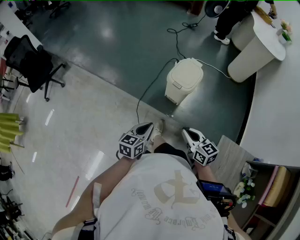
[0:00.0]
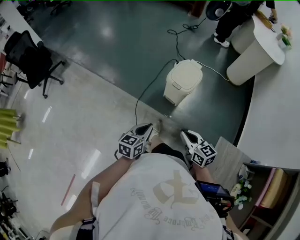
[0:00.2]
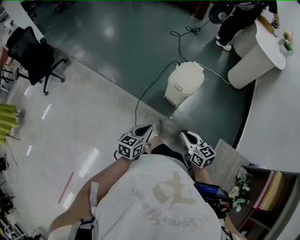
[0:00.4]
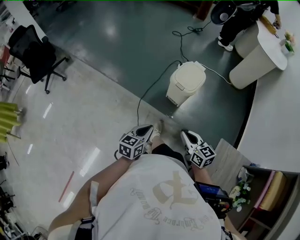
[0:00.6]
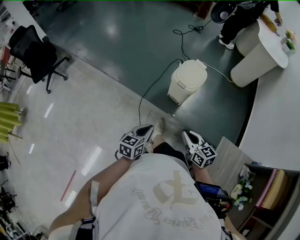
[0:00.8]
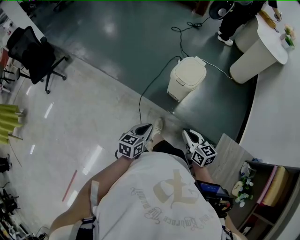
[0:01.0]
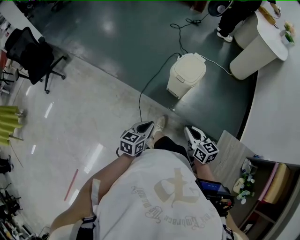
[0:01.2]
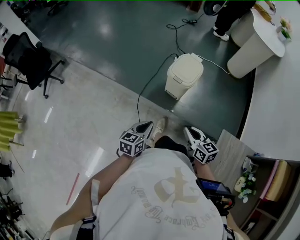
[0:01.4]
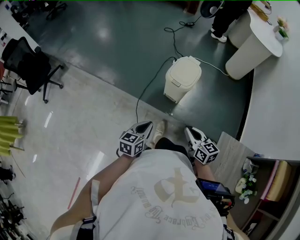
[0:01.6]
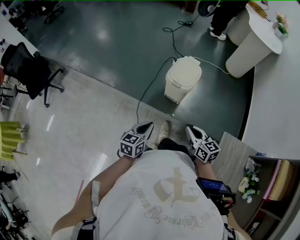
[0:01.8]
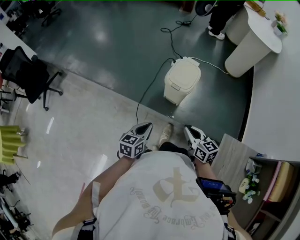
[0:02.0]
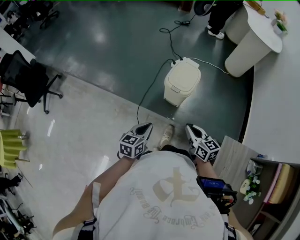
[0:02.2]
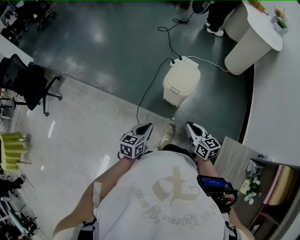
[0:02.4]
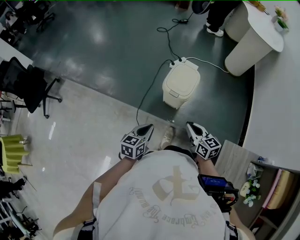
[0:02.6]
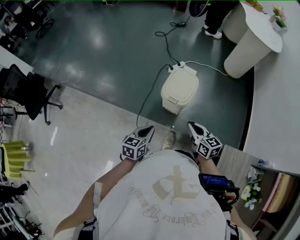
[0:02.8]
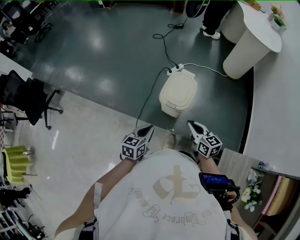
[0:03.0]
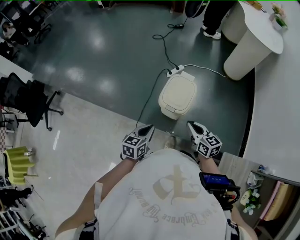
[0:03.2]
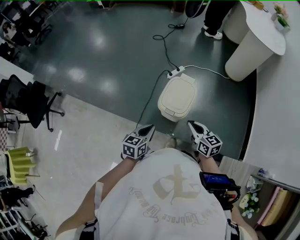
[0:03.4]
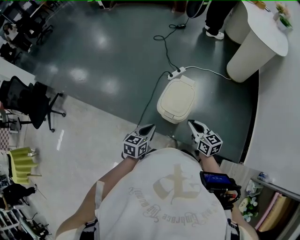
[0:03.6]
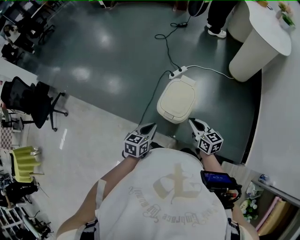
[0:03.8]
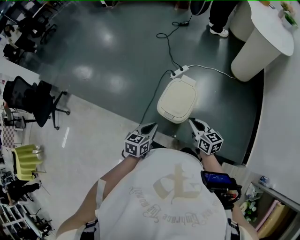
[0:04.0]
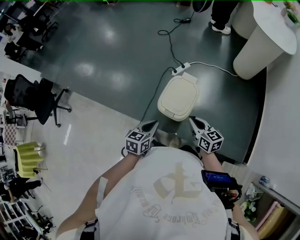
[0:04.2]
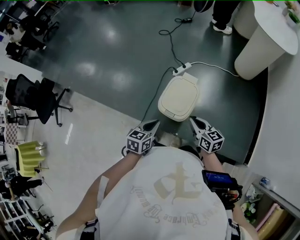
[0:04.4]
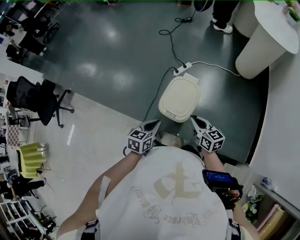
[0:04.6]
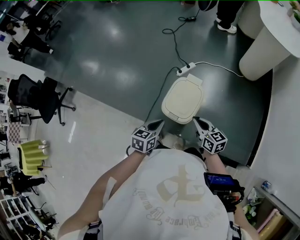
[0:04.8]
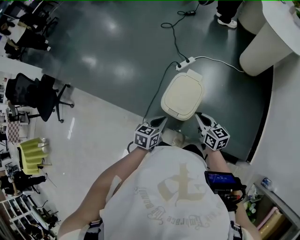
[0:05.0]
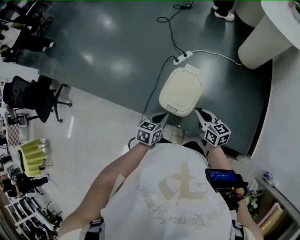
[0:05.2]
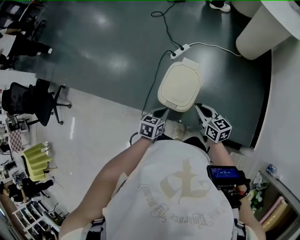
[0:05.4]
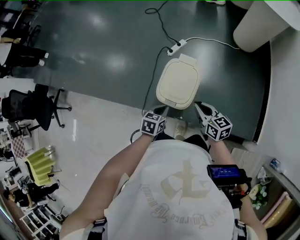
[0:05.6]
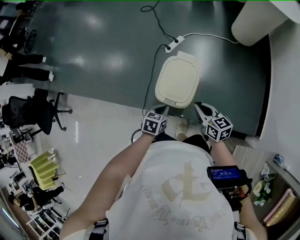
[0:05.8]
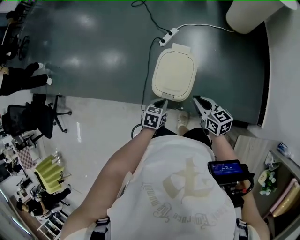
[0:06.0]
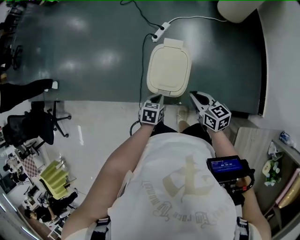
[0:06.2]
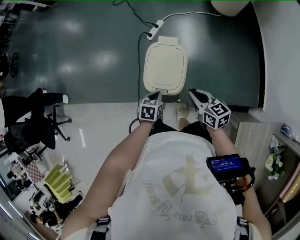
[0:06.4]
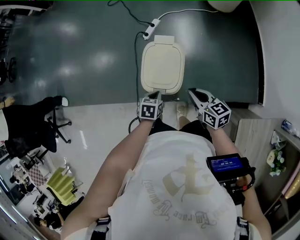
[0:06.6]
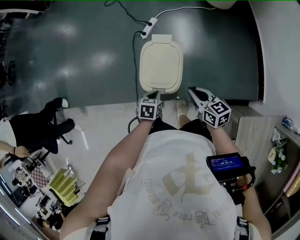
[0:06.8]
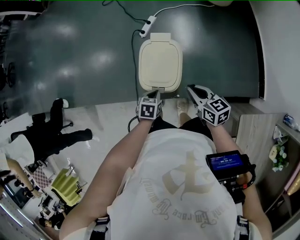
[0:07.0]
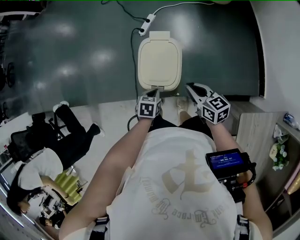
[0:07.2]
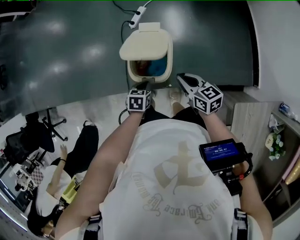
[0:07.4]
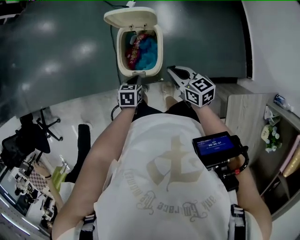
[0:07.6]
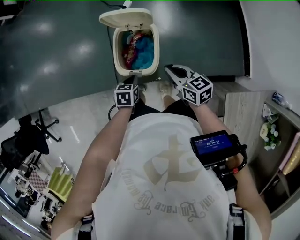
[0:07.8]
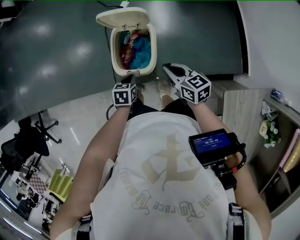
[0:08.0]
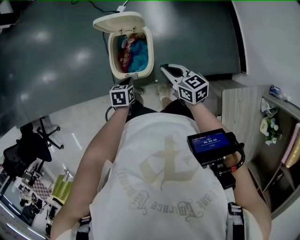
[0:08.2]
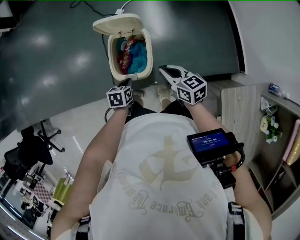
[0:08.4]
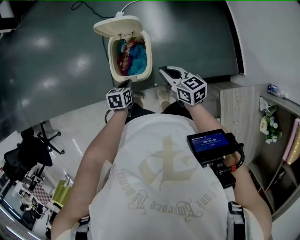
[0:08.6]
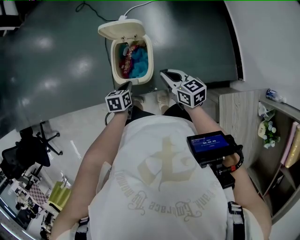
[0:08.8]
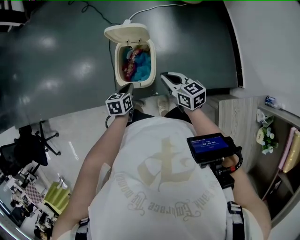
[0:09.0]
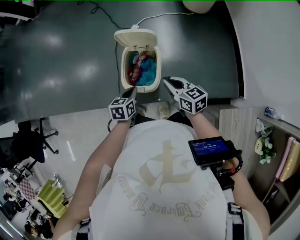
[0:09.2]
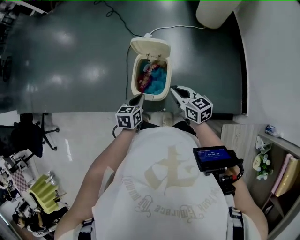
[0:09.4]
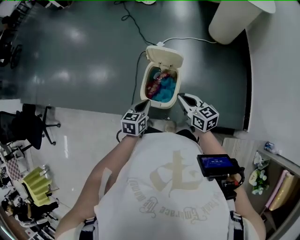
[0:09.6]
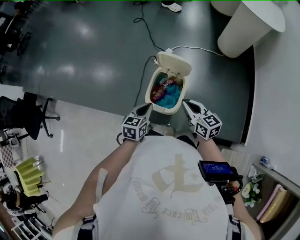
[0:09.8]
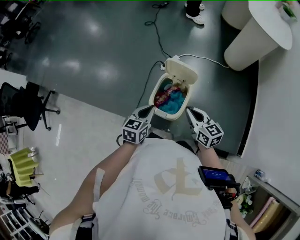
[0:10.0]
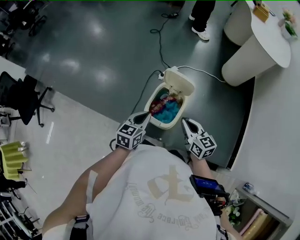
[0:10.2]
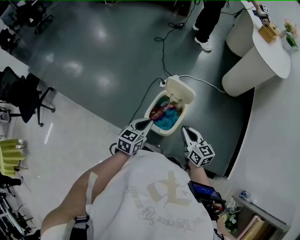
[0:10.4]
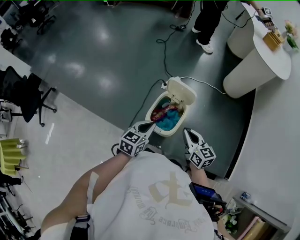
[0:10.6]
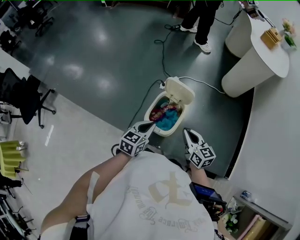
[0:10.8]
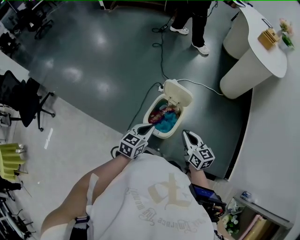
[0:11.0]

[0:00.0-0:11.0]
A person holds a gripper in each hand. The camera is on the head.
0:00.0 to 0:01.6: The grippers move only a little.
0:01.6 to 0:03.2: The grippers both shift forward by approximately 25 cm.
0:03.2 to 0:04.8: Both grippers move forward and to the right, roughly 10 cm.
0:04.8 to 0:06.2: The left gripper travels downward by approximately 15 cm, and turns by roughly 30 degrees. Meanwhile the right gripper shifts about 5 cm downward.
0:06.2 to 0:07.8: The grippers make only small movements.
0:07.8 to 0:09.4: The left gripper travels upward by roughly 10 cm. The right gripper travels upward by some 5 cm.
0:09.4 to 0:11.0: The left gripper heads upward, covering roughly 10 cm. Meanwhile the right gripper heads upward, covering about 5 cm.

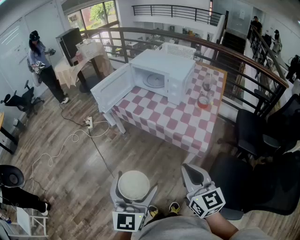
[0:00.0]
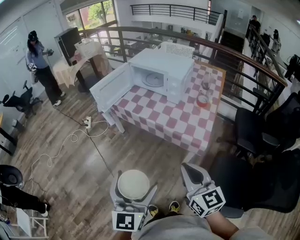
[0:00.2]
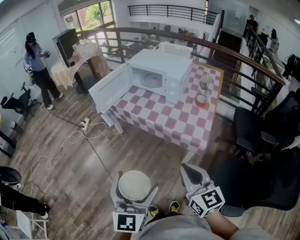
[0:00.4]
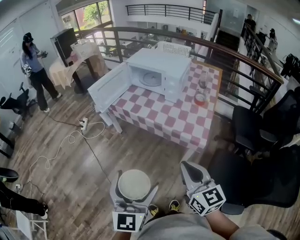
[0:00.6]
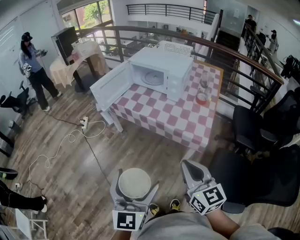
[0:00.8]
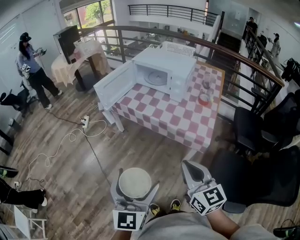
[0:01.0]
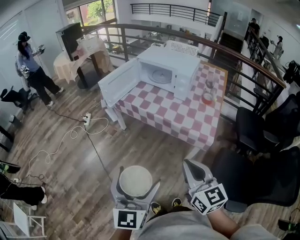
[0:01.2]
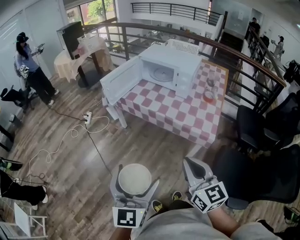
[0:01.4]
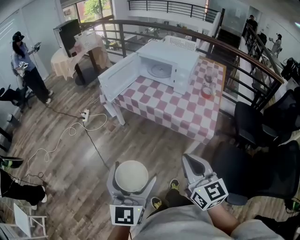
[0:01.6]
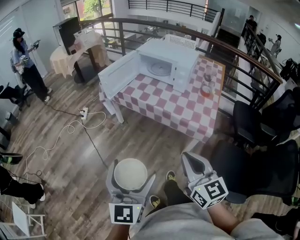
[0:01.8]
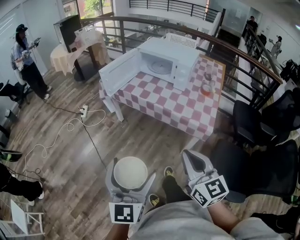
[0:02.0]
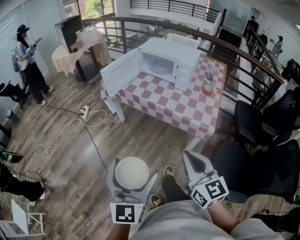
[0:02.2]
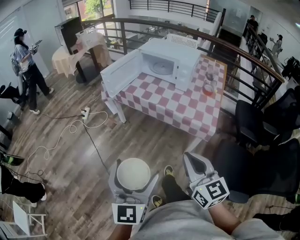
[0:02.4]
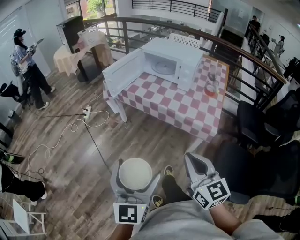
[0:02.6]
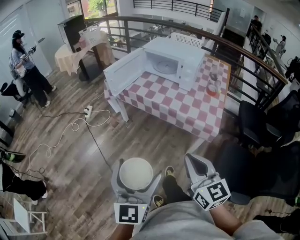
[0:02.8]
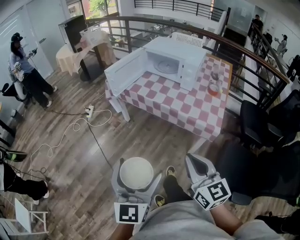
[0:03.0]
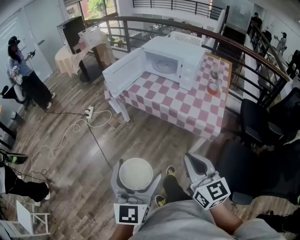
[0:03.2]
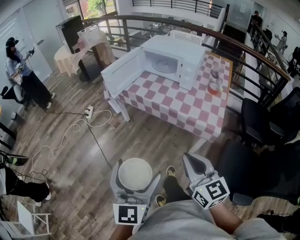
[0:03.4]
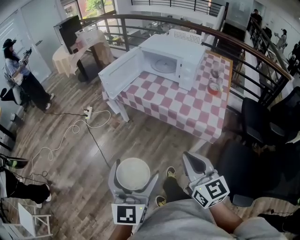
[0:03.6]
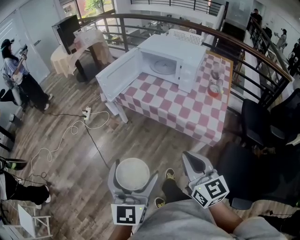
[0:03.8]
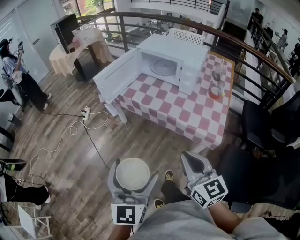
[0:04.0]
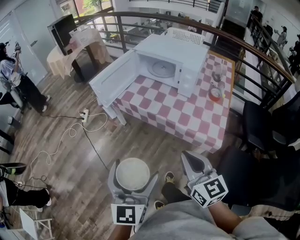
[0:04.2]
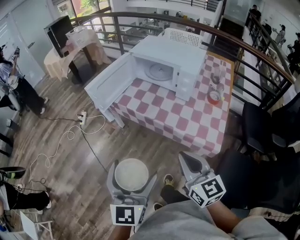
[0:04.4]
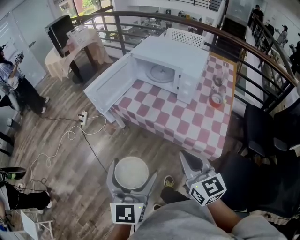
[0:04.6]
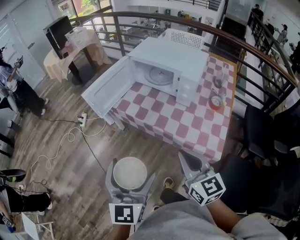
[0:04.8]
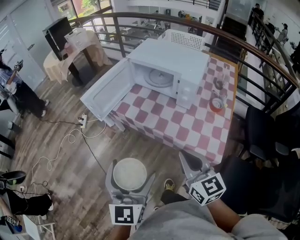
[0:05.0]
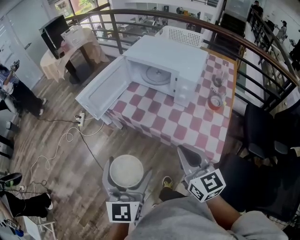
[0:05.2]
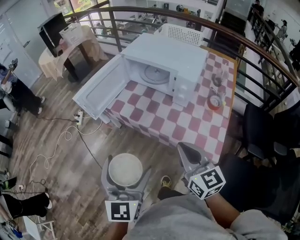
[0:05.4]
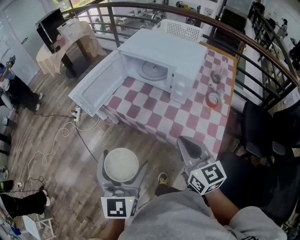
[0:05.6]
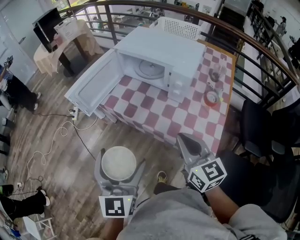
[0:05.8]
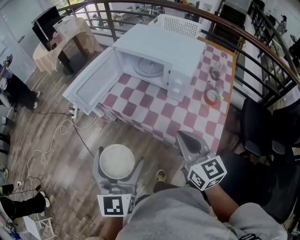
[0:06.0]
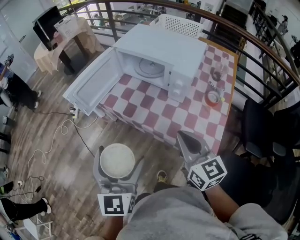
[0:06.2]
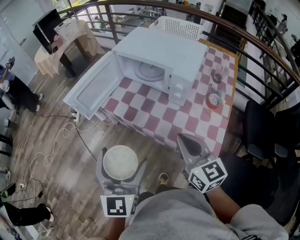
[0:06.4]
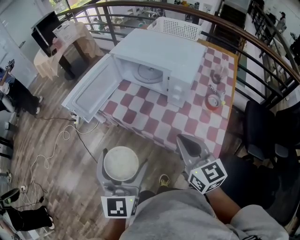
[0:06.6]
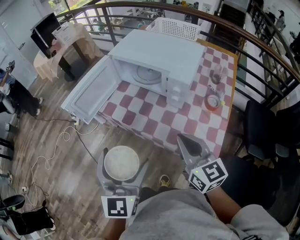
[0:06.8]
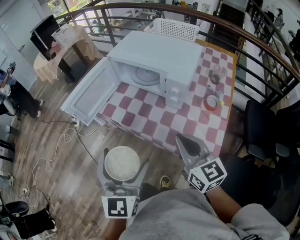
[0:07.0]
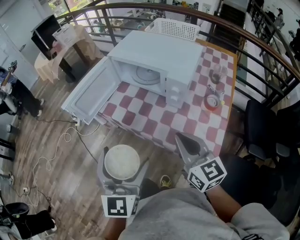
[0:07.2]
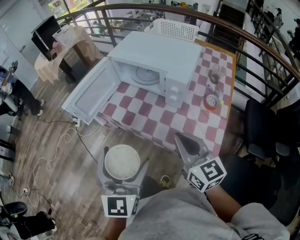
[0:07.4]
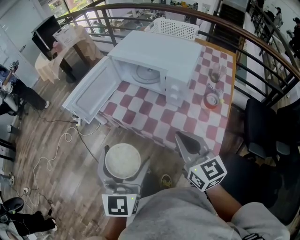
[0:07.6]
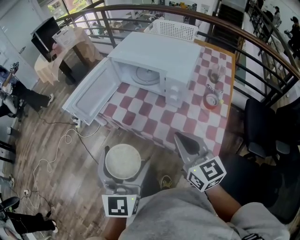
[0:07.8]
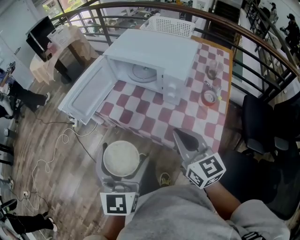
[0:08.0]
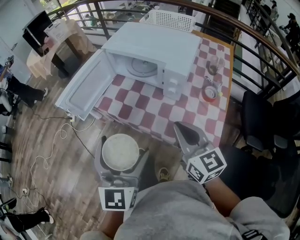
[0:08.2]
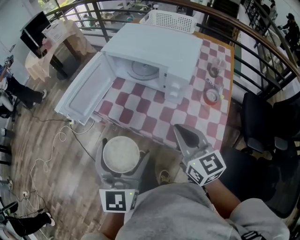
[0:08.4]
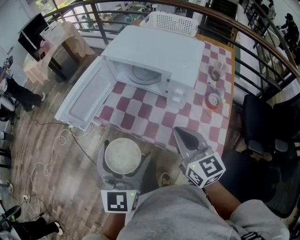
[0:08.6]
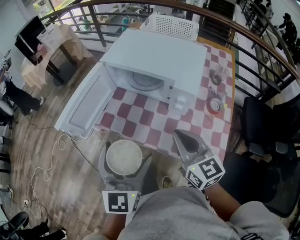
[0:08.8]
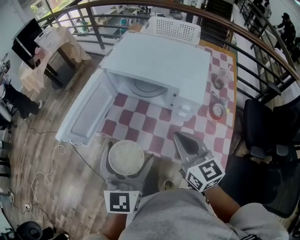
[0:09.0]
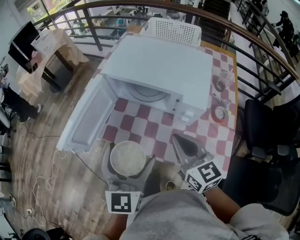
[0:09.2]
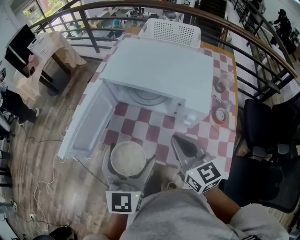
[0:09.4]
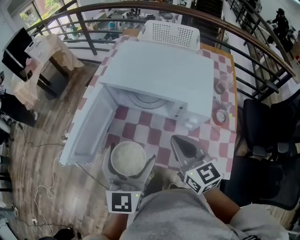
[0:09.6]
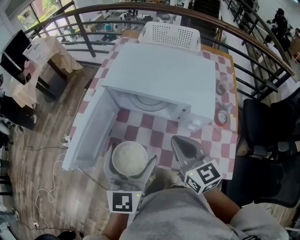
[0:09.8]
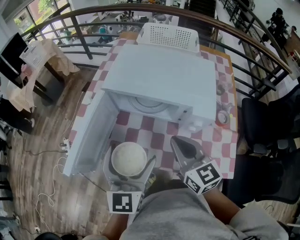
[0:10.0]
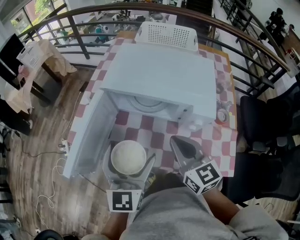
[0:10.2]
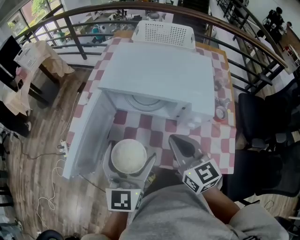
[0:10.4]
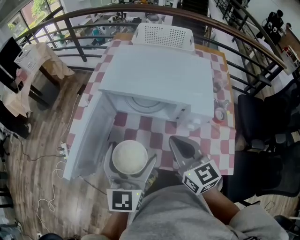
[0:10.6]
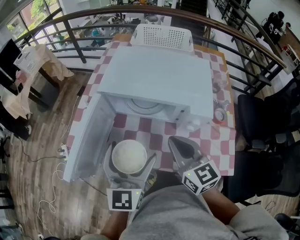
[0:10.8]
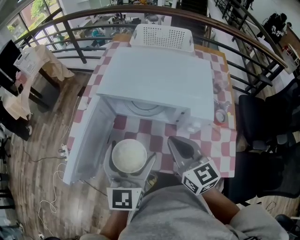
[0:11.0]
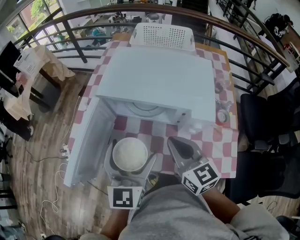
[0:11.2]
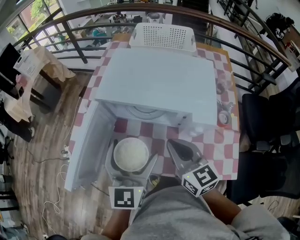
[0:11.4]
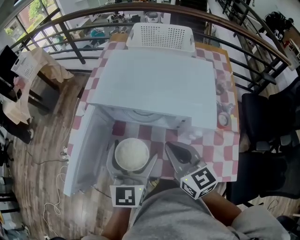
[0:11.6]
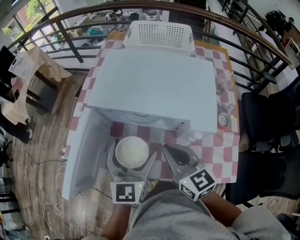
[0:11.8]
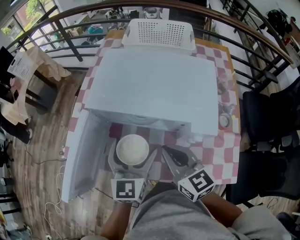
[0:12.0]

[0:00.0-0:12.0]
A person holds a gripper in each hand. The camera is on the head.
0:00.0 to 0:01.6: The two grippers go roughly 10 cm to the left.
0:01.6 to 0:03.0: The grippers move only a little.
0:03.0 to 0:04.4: Both grippers travel together forward, roughly 15 cm.
0:04.4 to 0:06.0: The left gripper moves forward, approximately 15 cm, while the right gripper goes roughly 15 cm forward and to the right.
0:06.0 to 0:07.6: The grippers stay close to where they were, moving slightly.
0:07.6 to 0:09.0: The grippers both shift forward by some 15 cm.
0:09.0 to 0:10.4: The left gripper shifts roughly 10 cm forward; the right gripper travels forward and to the left by approximately 10 cm.
0:10.4 to 0:12.0: The right gripper moves forward, approximately 5 cm. Meanwhile the left gripper goes approximately 10 cm forward and downward.

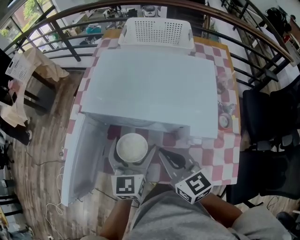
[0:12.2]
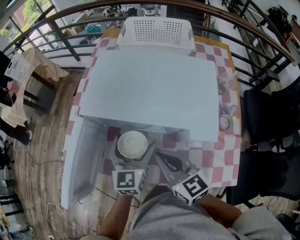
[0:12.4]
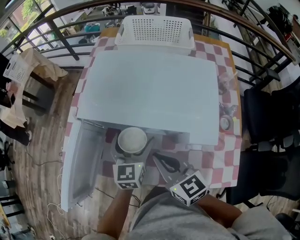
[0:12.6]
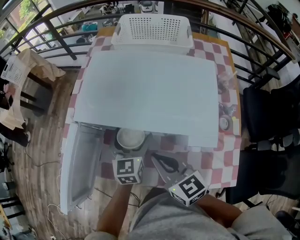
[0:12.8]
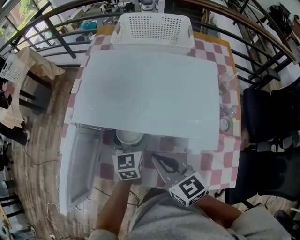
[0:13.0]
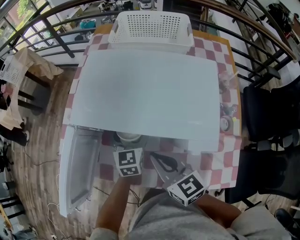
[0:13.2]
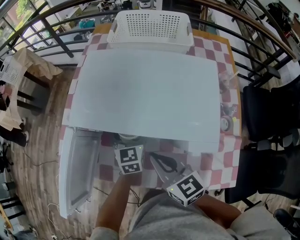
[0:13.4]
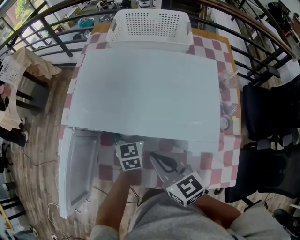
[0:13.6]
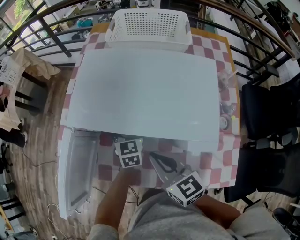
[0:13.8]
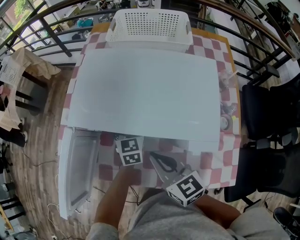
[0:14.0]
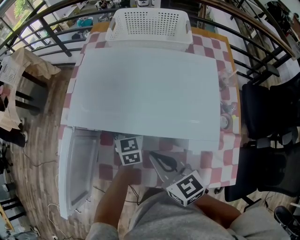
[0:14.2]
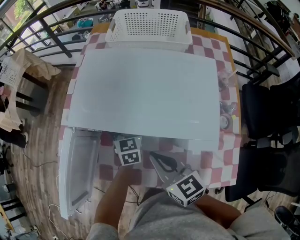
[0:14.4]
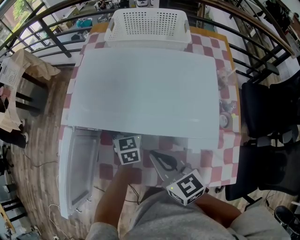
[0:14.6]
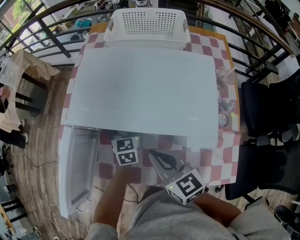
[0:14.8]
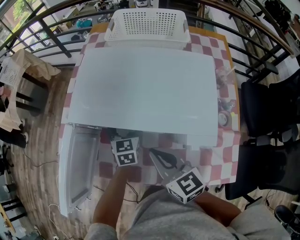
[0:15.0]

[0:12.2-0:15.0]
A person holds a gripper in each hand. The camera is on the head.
0:12.2 to 0:13.6: The left gripper moves forward and downward, roughly 15 cm.
0:13.6 to 0:15.0: The grippers stay close to where they were, moving slightly.
